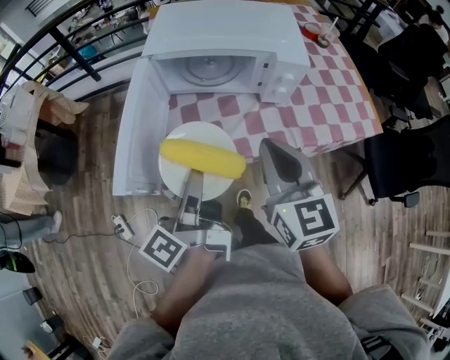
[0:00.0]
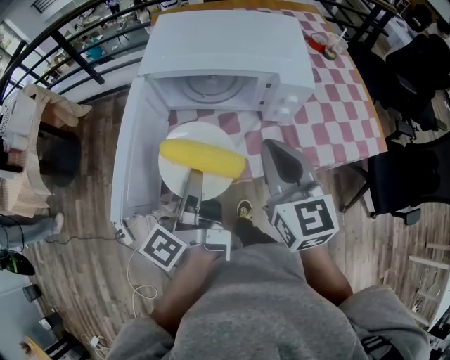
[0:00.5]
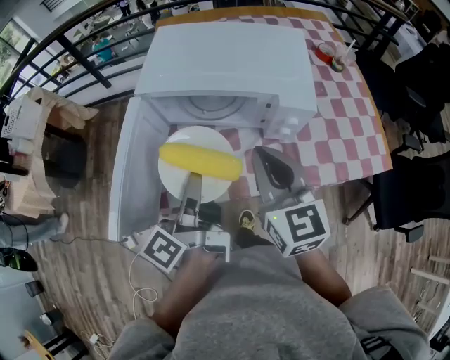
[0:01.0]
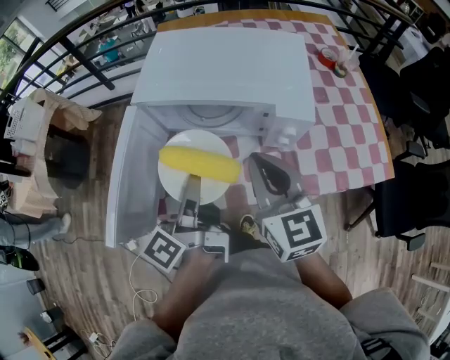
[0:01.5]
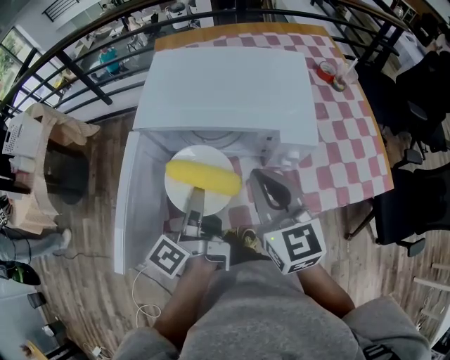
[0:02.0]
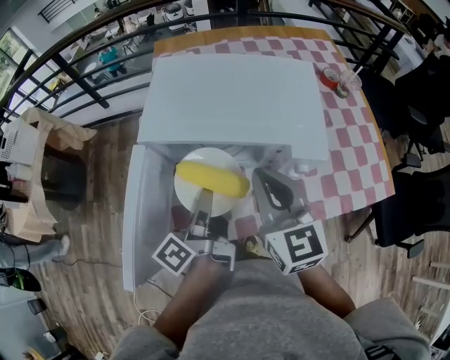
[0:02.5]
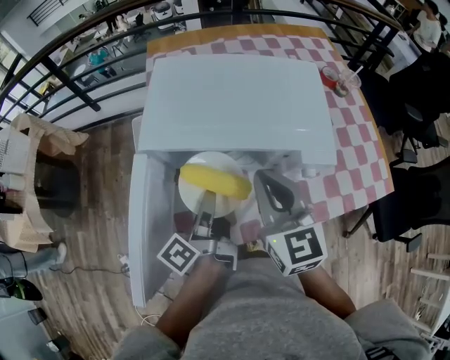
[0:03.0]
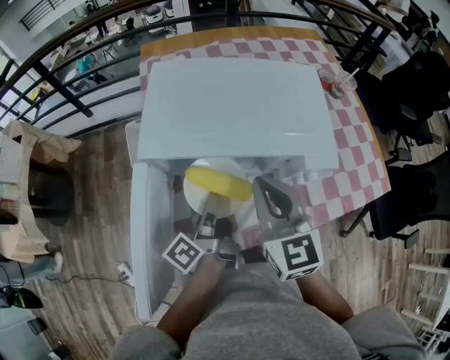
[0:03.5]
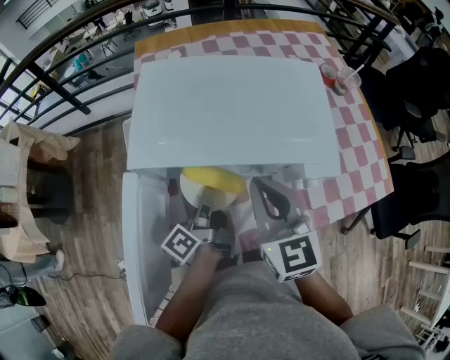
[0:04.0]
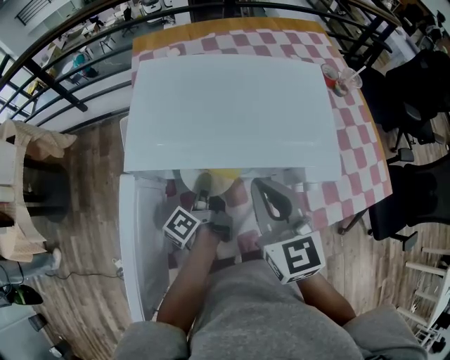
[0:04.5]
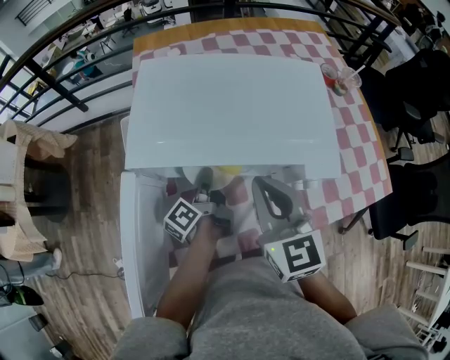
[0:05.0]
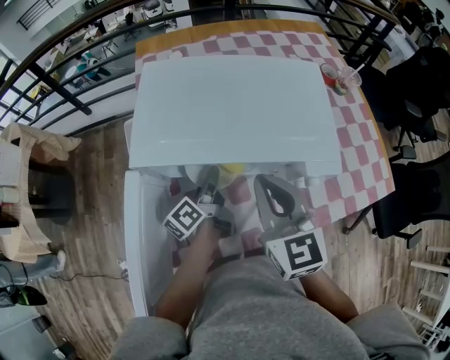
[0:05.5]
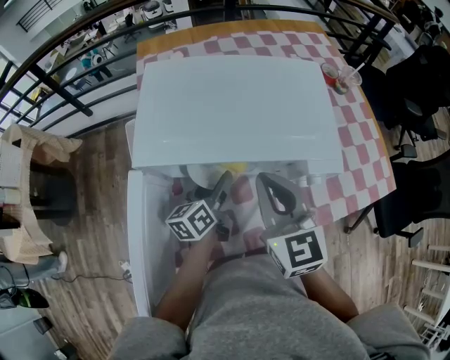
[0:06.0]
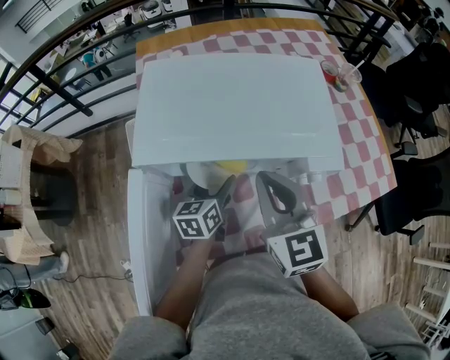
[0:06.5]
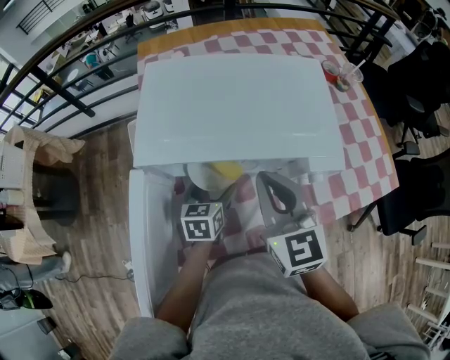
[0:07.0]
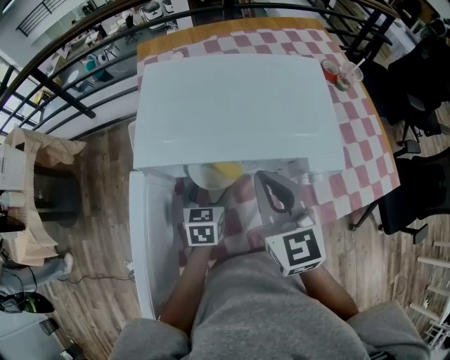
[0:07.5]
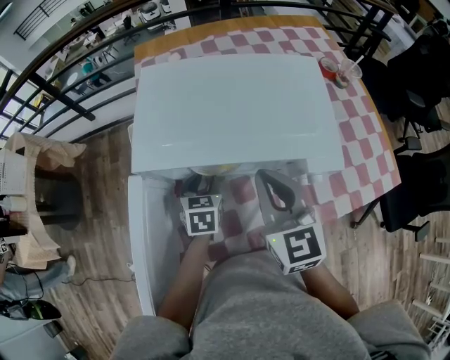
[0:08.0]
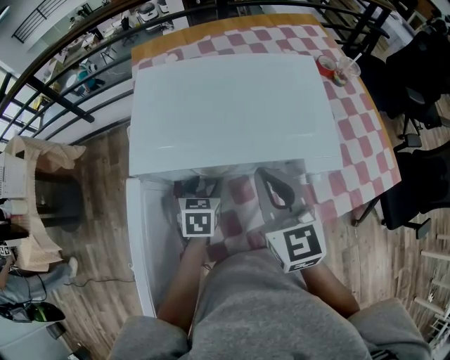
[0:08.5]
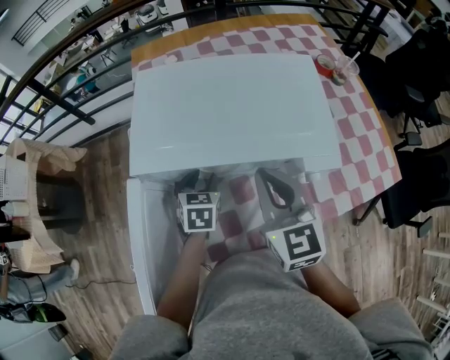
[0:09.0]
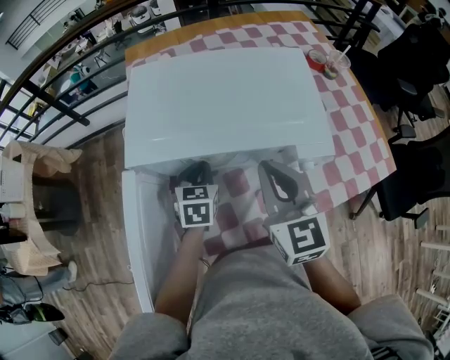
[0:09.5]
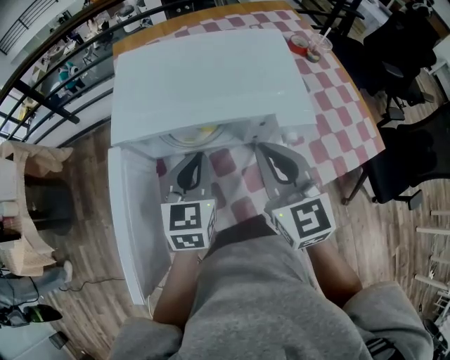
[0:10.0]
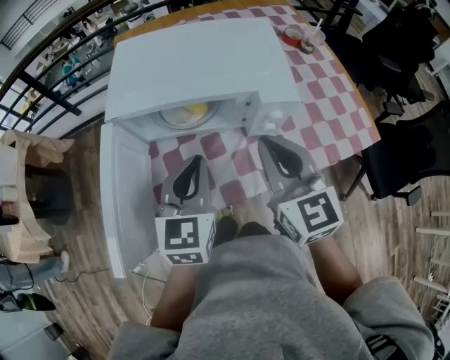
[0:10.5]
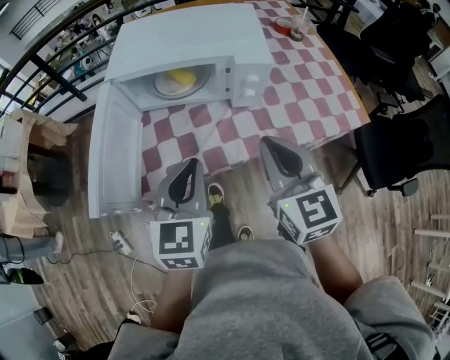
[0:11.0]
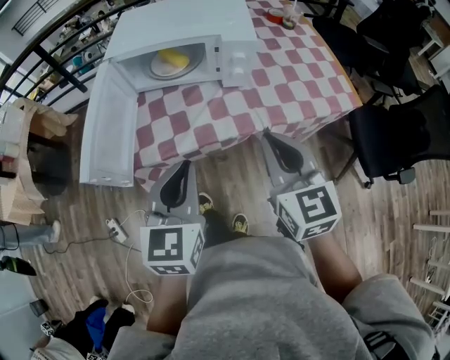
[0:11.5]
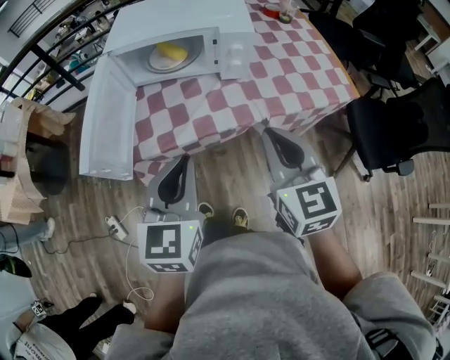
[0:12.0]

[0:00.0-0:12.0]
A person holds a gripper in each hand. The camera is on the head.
0:00.0 to 0:02.0: The grippers both shift forward by approximately 15 cm.
0:02.0 to 0:04.0: The right gripper goes roughly 10 cm forward, while the left gripper goes some 15 cm downward and forward.
0:04.0 to 0:06.0: The left gripper changes its angle by roughly 40 degrees, and opens its fingers.
0:06.0 to 0:08.0: The left gripper changes its angle by roughly 50 degrees, and opens and closes again.
0:08.0 to 0:10.0: The left gripper goes approximately 15 cm upward and backward, and changes its angle by approximately 20 degrees. The right gripper moves about 5 cm.
0:10.0 to 0:12.0: Both grippers travel together backward, roughly 30 cm.

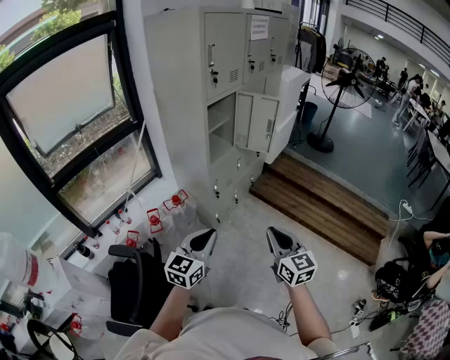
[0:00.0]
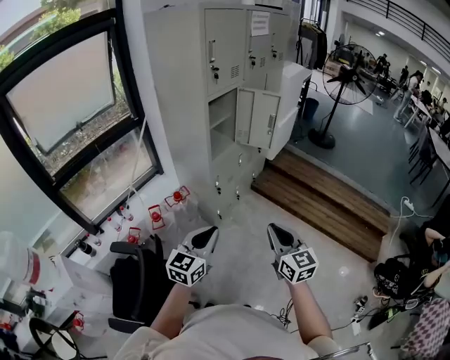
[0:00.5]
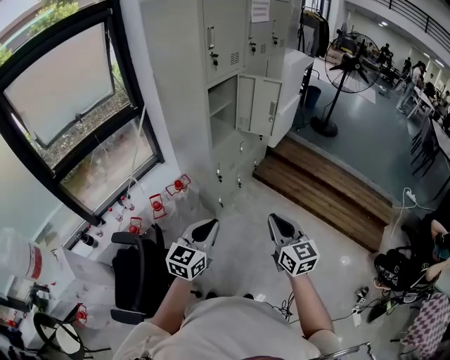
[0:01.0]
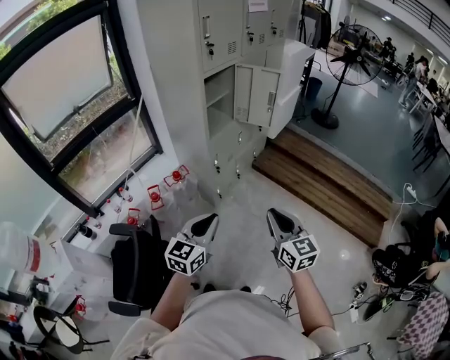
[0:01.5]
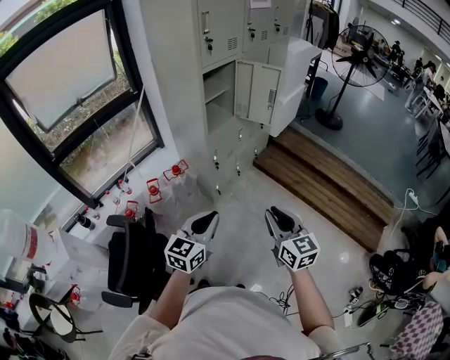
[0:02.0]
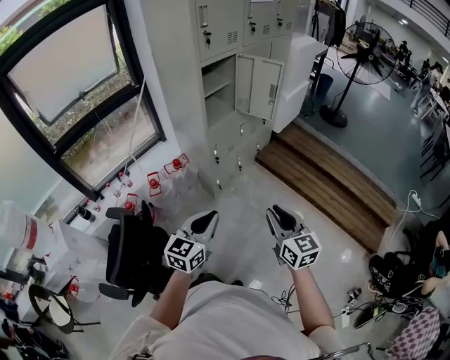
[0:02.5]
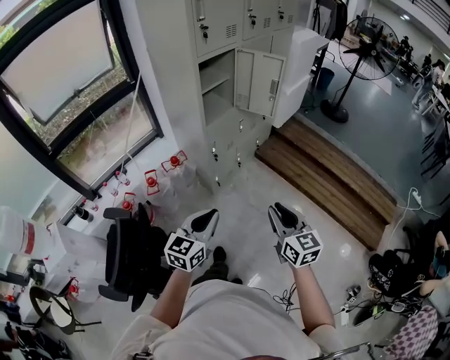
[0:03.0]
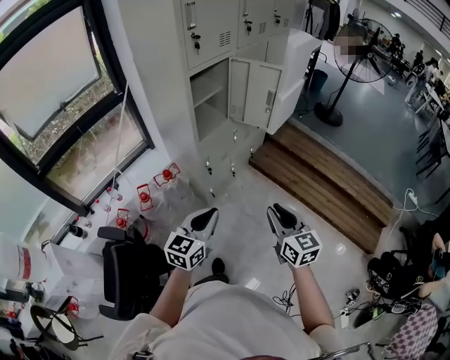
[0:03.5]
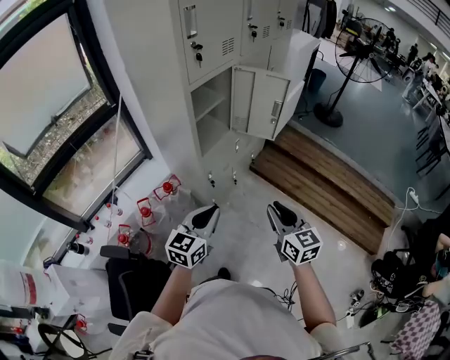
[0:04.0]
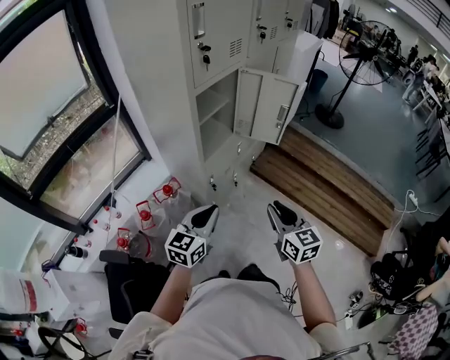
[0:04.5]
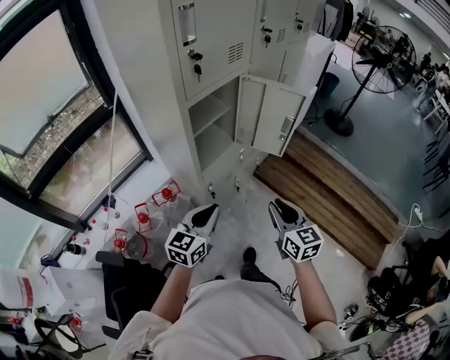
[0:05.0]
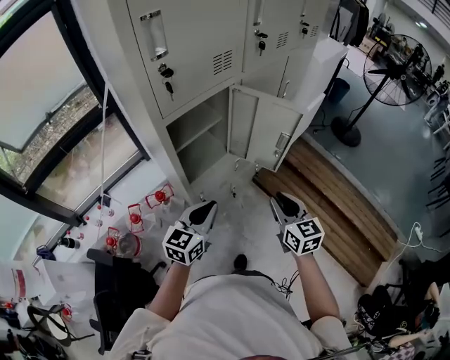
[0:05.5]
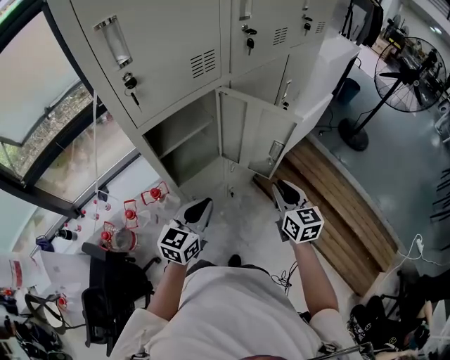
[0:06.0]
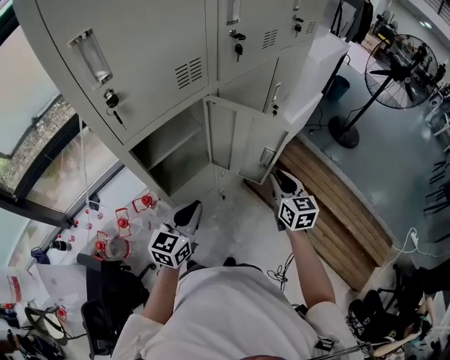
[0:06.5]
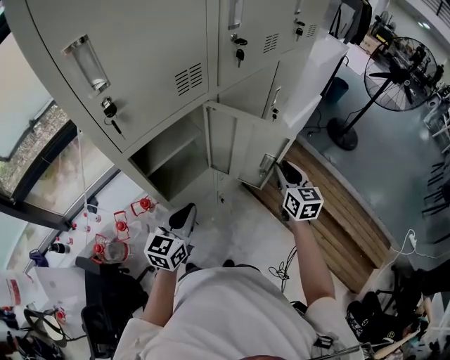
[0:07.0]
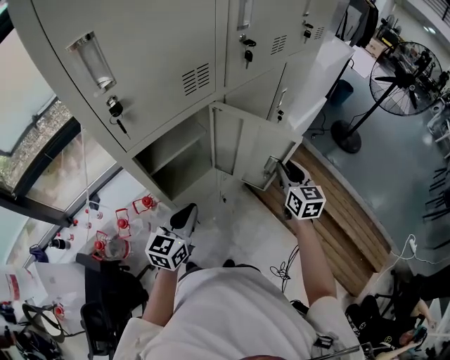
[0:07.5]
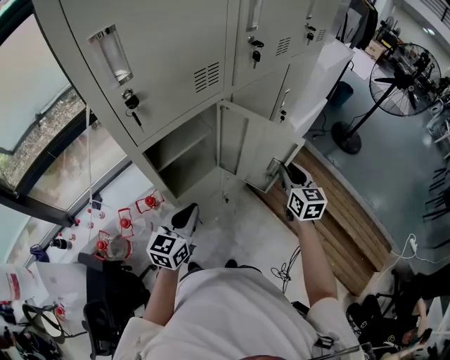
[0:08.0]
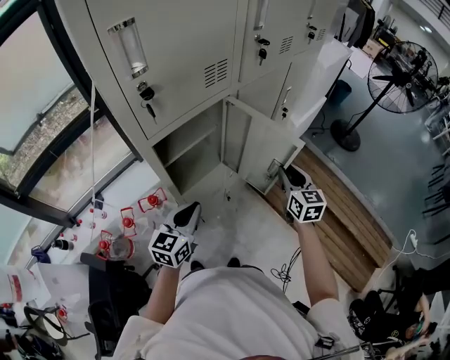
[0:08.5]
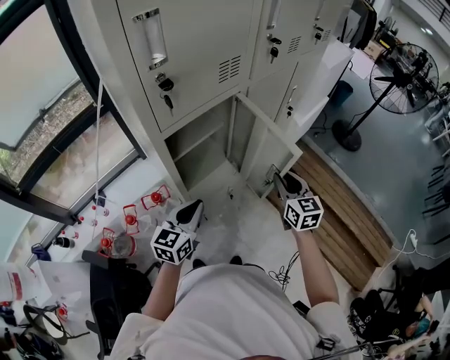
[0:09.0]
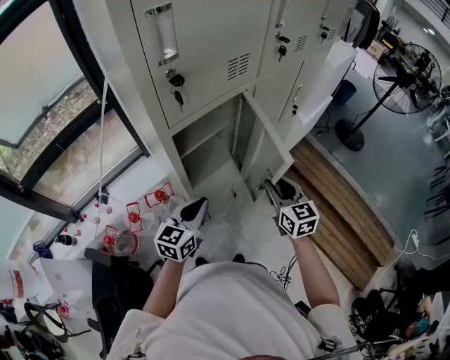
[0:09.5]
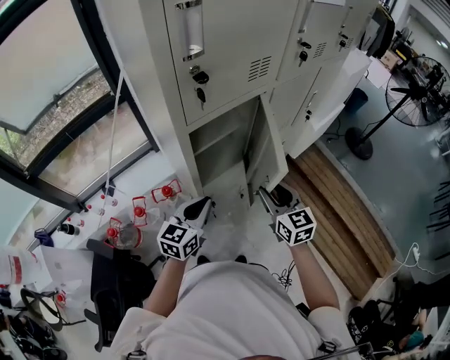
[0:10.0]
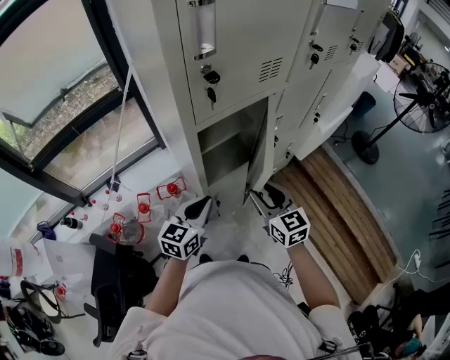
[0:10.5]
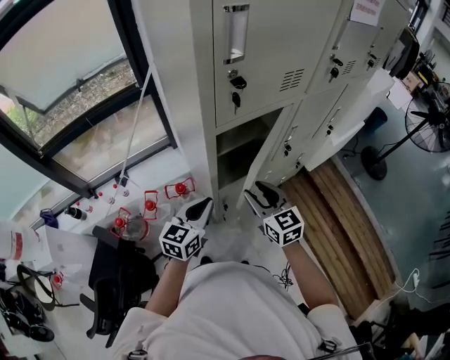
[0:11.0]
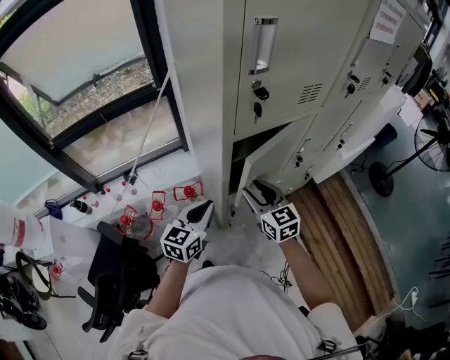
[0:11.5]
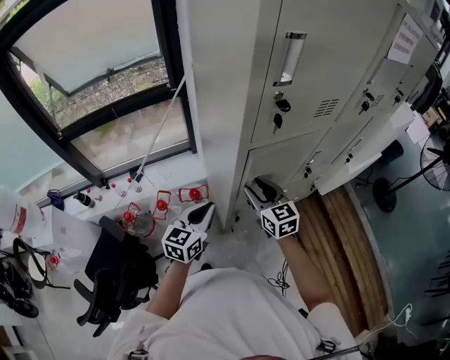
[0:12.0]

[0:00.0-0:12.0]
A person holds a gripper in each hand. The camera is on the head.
0:00.0 to 0:02.0: The left gripper travels to the right by some 5 cm. The right gripper changes place by about 5 cm.
0:02.0 to 0:04.0: Both grippers move forward, about 25 cm.
0:04.0 to 0:06.0: The grippers both shift forward by some 30 cm.
0:06.0 to 0:08.0: The left gripper heads to the left, covering roughly 5 cm. Meanwhile the right gripper moves forward, roughly 10 cm.
0:08.0 to 0:10.0: The right gripper travels to the left and backward by some 20 cm; the left gripper heads to the left, covering roughly 5 cm.
0:10.0 to 0:12.0: The right gripper travels to the left and forward by approximately 20 cm, and changes its angle by some 20 degrees. The left gripper goes about 10 cm to the left.

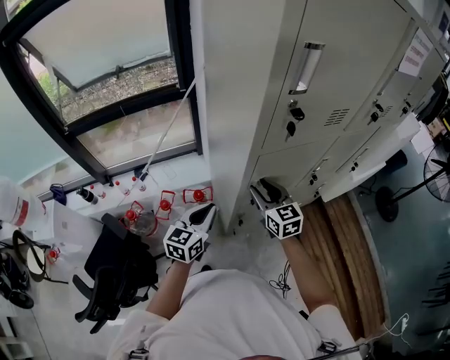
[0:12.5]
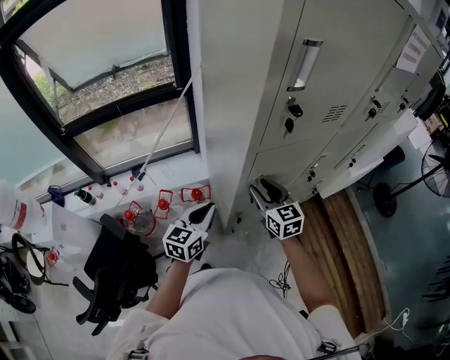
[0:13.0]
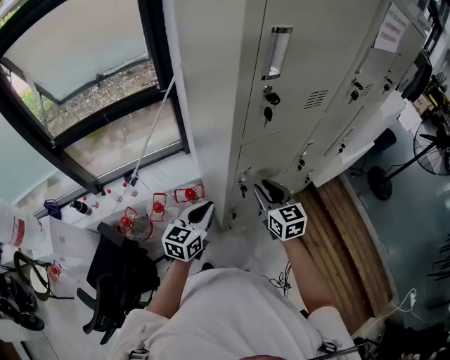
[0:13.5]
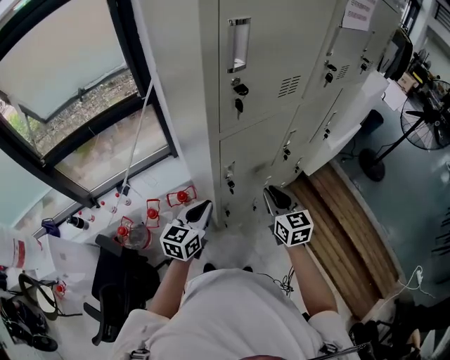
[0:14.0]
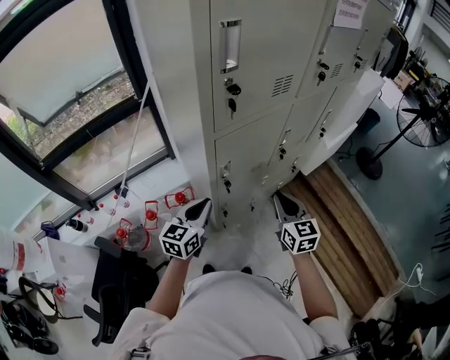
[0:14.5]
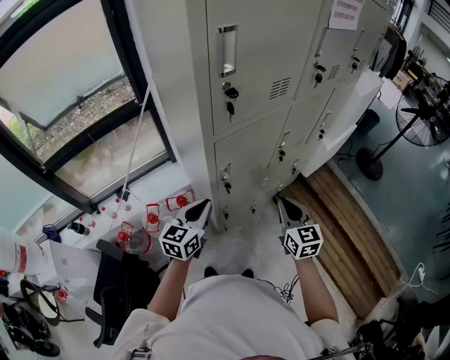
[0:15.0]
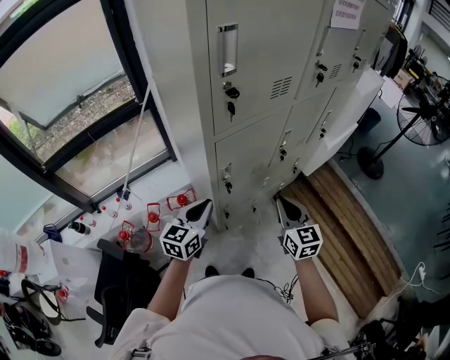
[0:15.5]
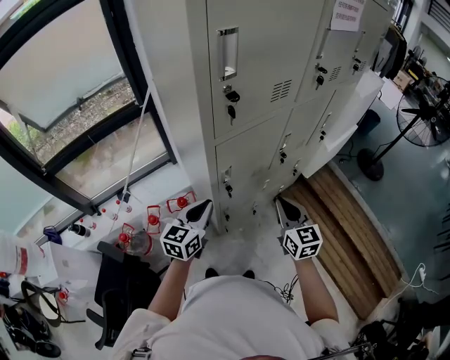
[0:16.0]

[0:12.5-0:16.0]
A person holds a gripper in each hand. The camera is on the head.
0:12.5 to 0:14.5: The right gripper travels to the right and backward by roughly 20 cm, turns by about 20 degrees, and closes; the left gripper goes roughly 5 cm to the right.
0:14.5 to 0:16.0: There are only small adjustments of the grippers.
